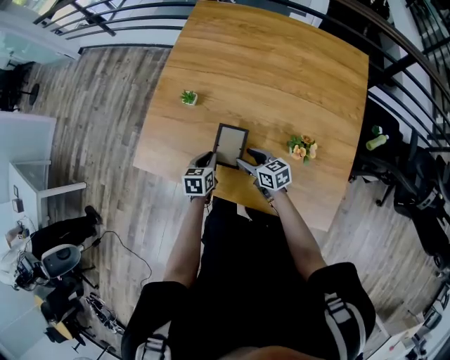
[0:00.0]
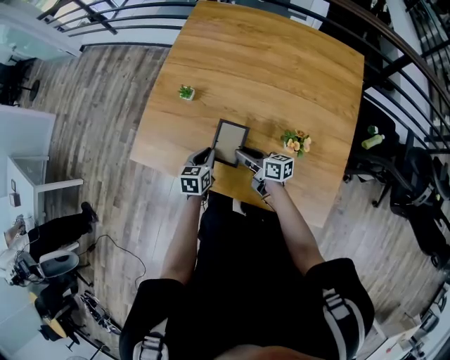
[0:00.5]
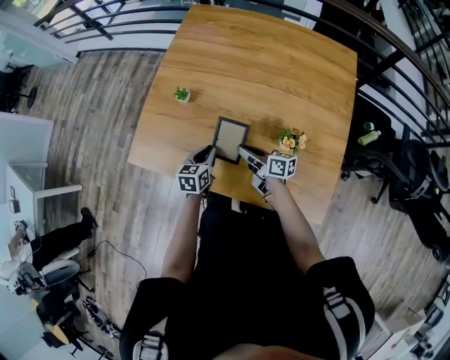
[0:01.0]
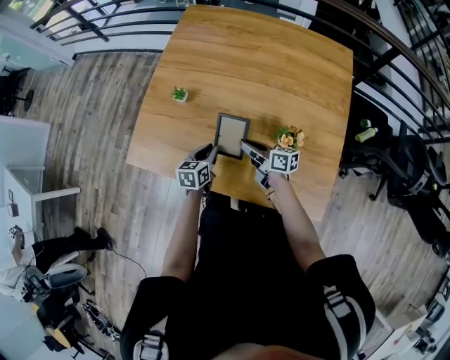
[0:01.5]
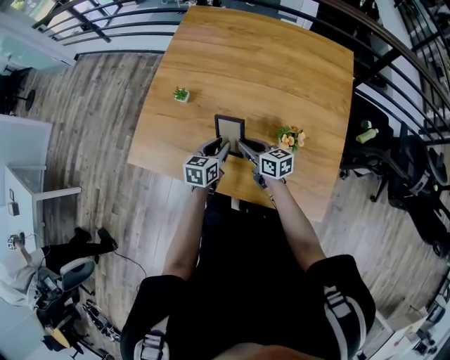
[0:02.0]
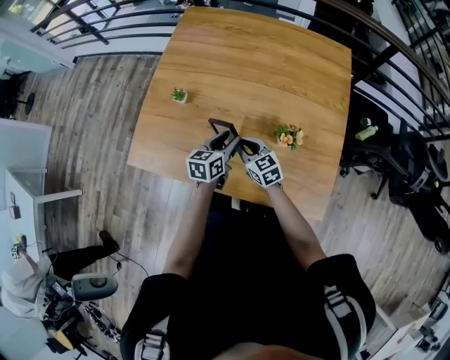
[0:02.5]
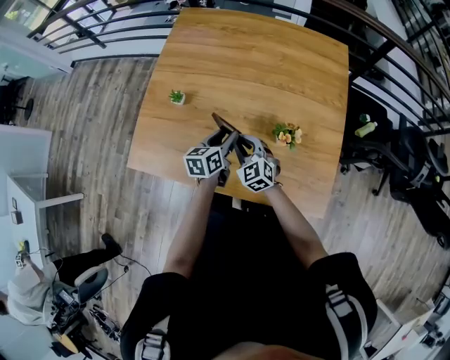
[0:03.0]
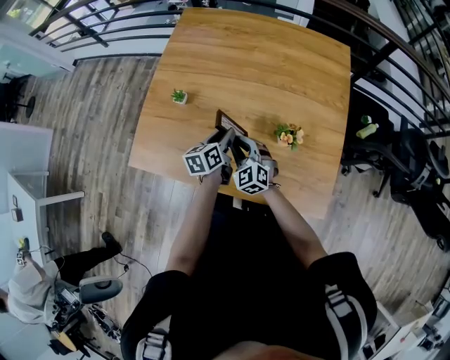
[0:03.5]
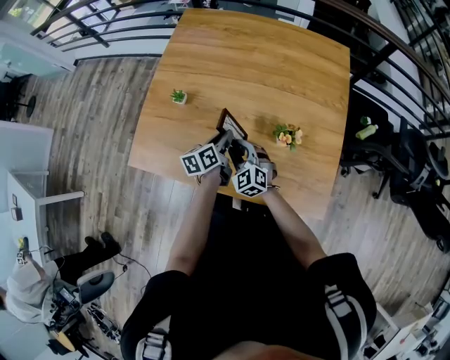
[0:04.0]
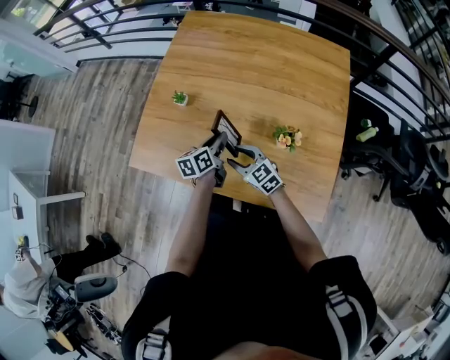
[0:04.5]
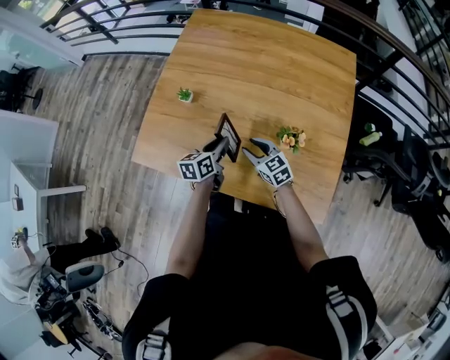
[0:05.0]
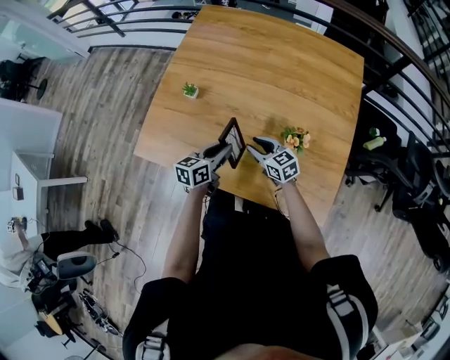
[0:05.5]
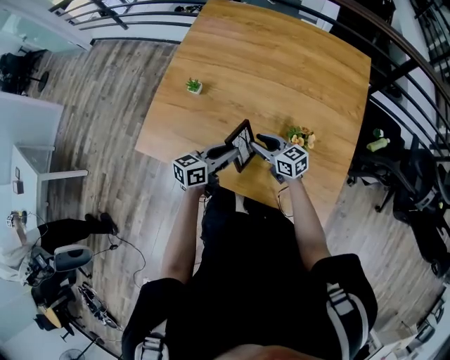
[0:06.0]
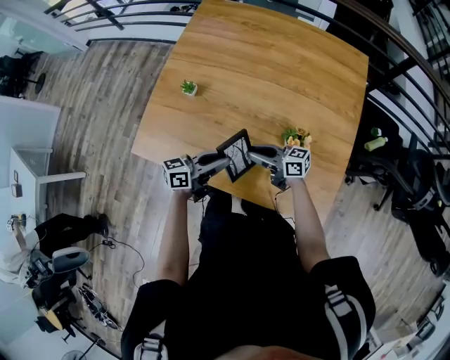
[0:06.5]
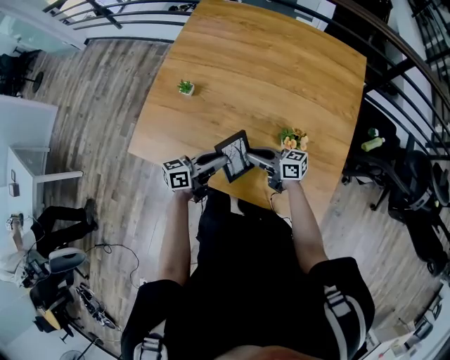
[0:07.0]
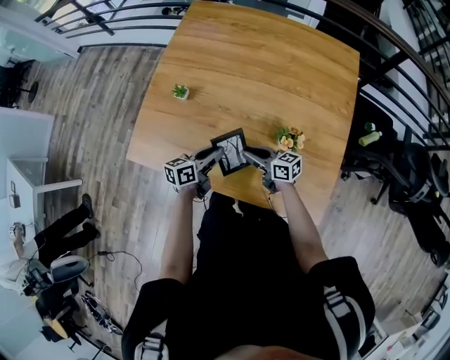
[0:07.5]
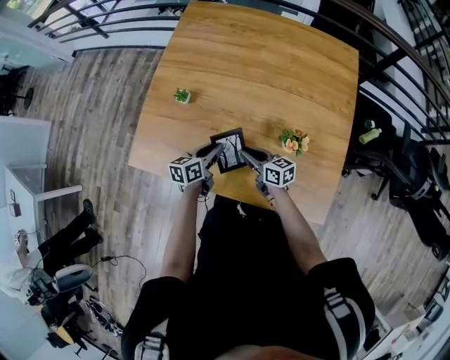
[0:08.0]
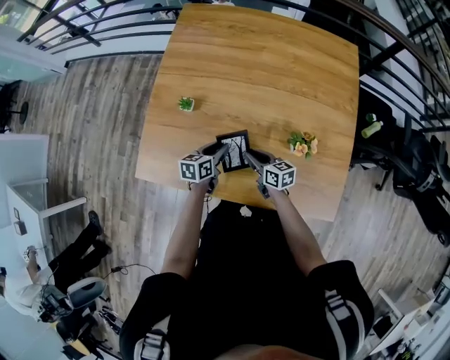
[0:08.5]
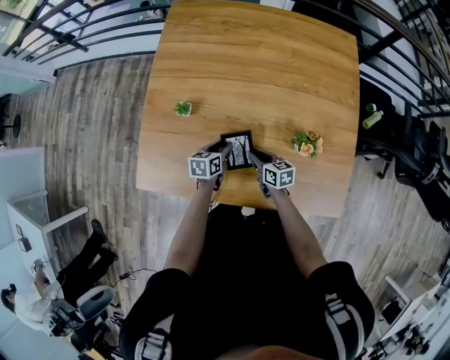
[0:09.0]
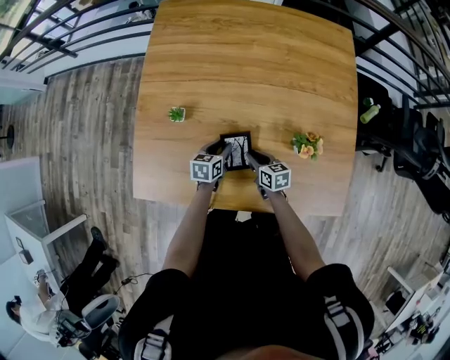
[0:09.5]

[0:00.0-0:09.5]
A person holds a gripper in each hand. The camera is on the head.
0:00.0 to 0:02.0: The left gripper goes approximately 10 cm to the right and upward. The right gripper is displaced upward by approximately 5 cm, and closes.
0:02.0 to 0:04.0: The left gripper changes its angle by approximately 30 degrees, while the right gripper twists roughly 60 degrees counterclockwise, seen from behind.
0:04.0 to 0:05.5: The left gripper is displaced backward by some 5 cm. Meanwhile the right gripper changes place by some 5 cm, and turns by about 40 degrees.
0:05.5 to 0:07.5: The right gripper swivels about 30 degrees.
0:07.5 to 0:09.5: The two grippers go roughly 15 cm downward and forward. The right gripper changes its angle by roughly 40 degrees; the left gripper turns by roughly 30 degrees.

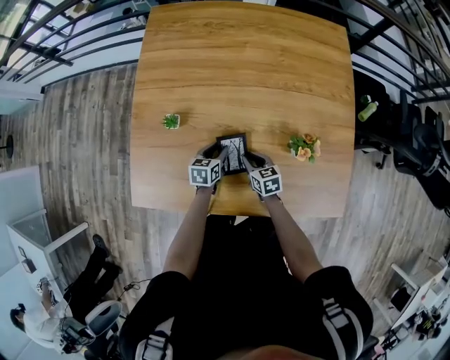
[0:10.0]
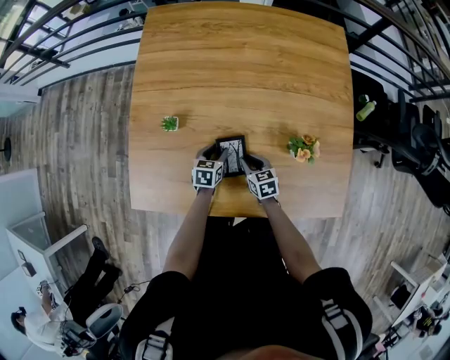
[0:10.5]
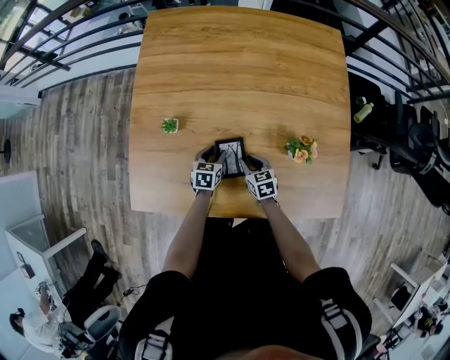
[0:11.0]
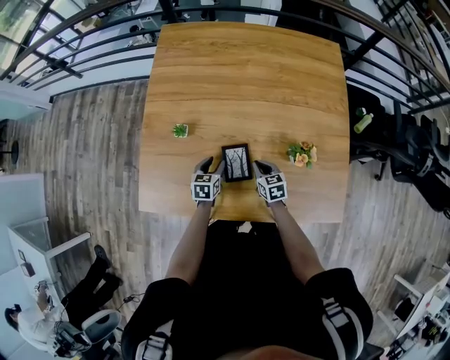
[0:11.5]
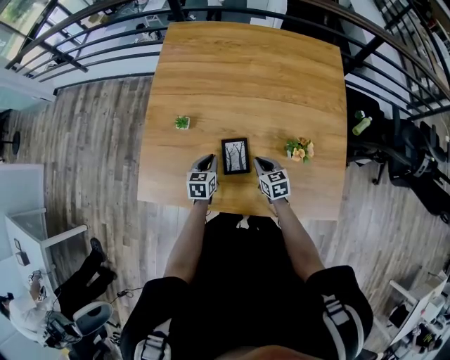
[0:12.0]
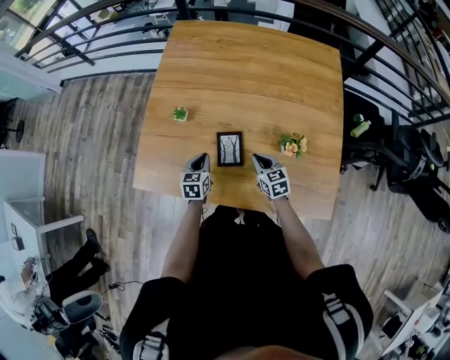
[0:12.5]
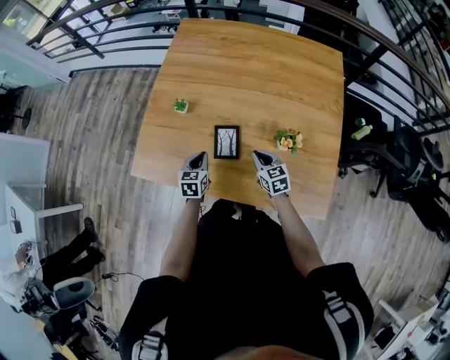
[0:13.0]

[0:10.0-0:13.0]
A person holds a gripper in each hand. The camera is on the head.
0:10.0 to 0:11.5: The grippers stay close to where they were, moving slightly.
0:11.5 to 0:13.0: The left gripper shifts roughly 10 cm backward and upward, and closes. Meanwhile the right gripper moves upward, approximately 10 cm.

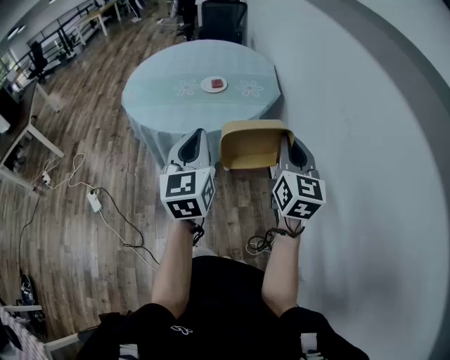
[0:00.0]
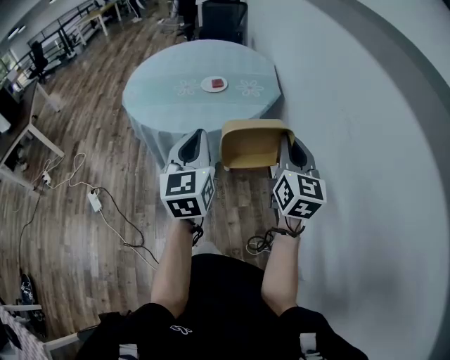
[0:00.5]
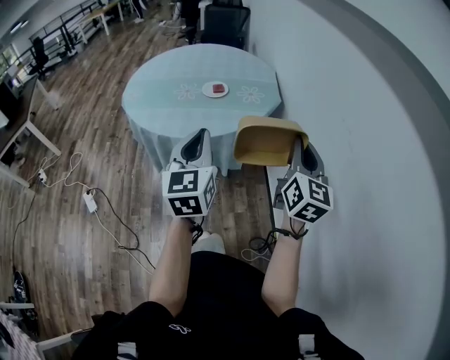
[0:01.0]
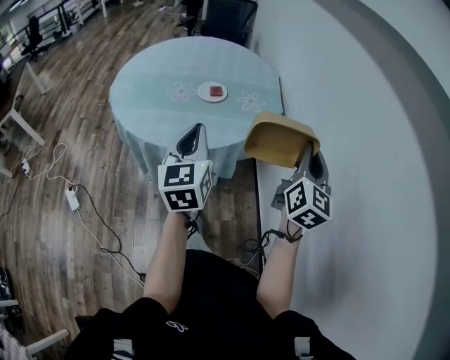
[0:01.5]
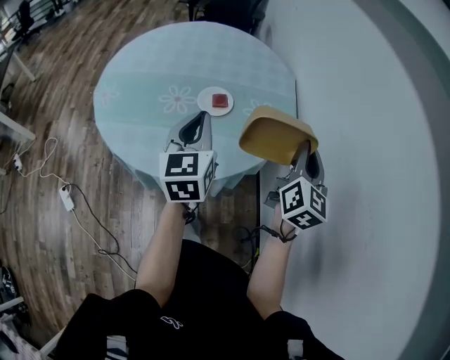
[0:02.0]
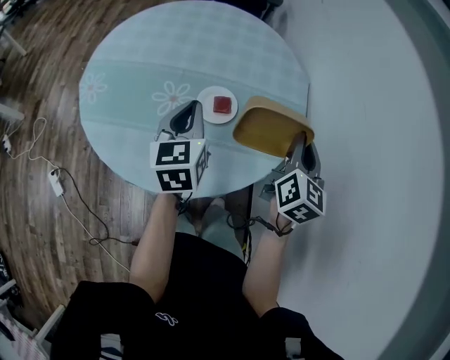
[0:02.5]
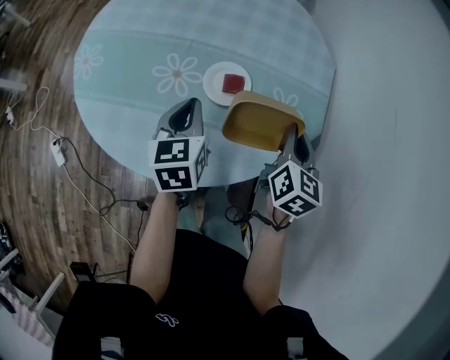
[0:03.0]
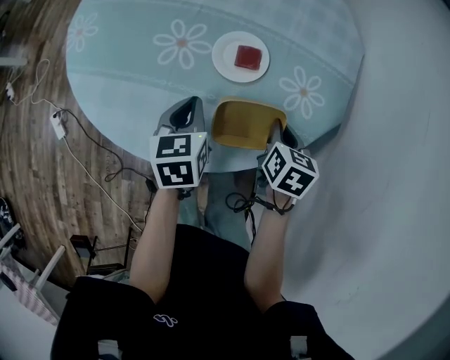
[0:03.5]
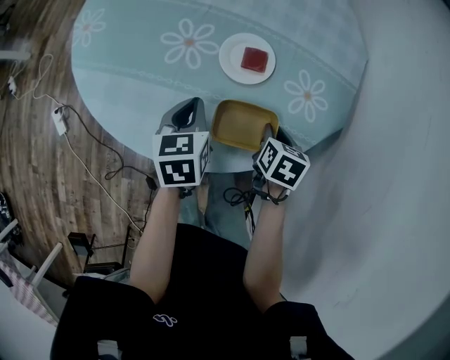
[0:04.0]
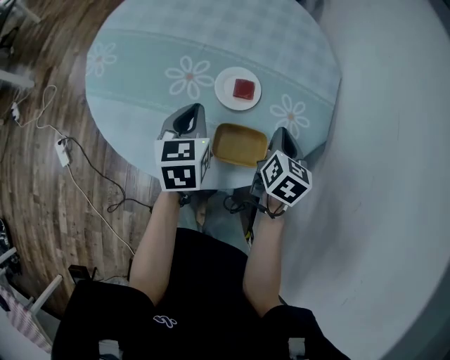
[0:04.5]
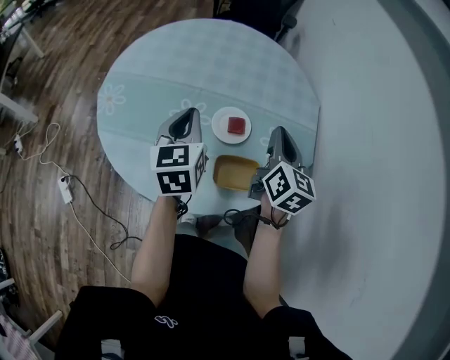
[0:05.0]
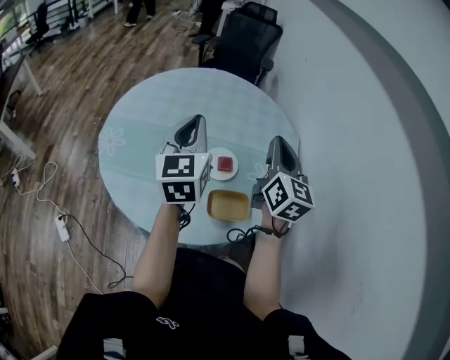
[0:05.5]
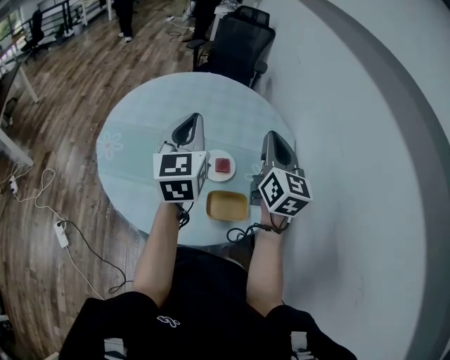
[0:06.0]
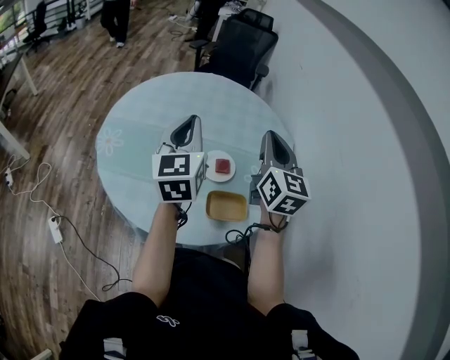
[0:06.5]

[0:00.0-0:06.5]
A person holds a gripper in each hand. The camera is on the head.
0:00.0 to 0:02.0: The two grippers go approximately 40 cm forward.
0:02.0 to 0:04.5: The two grippers go roughly 25 cm downward, forward and to the left. The left gripper swivels approximately 20 degrees, while the right gripper angles its fingers downward, by some 30 degrees.
0:04.5 to 0:06.5: Both grippers travel together upward, roughly 25 cm. The left gripper angles its fingers upward, by about 30 degrees; the right gripper tilts its fingers approximately 30 degrees upward.

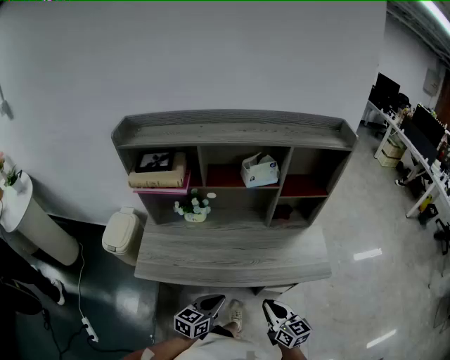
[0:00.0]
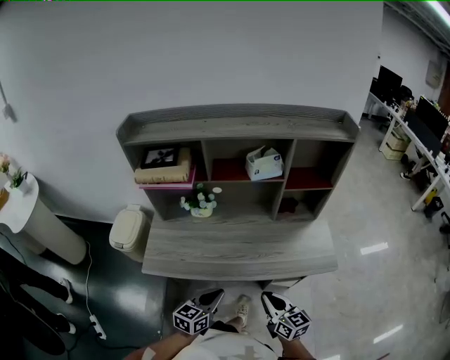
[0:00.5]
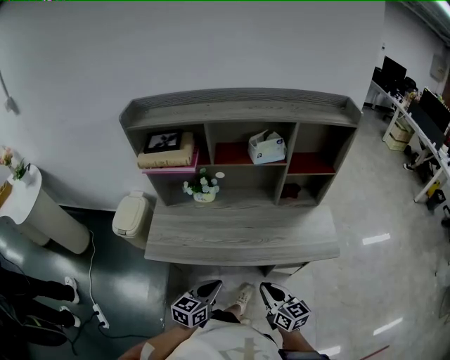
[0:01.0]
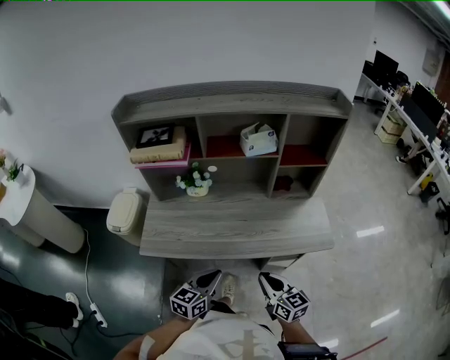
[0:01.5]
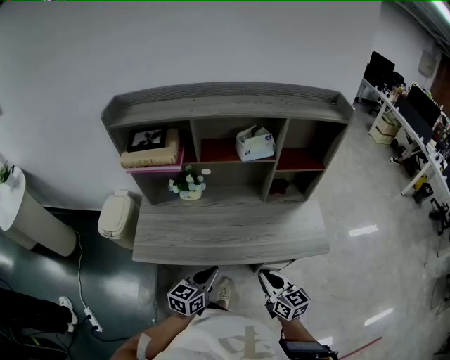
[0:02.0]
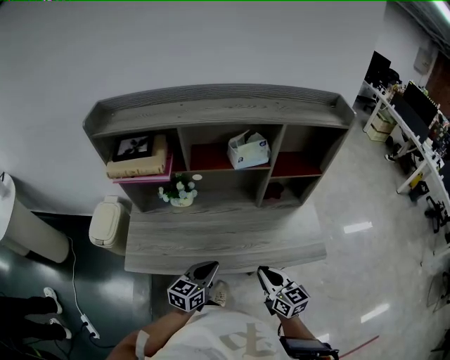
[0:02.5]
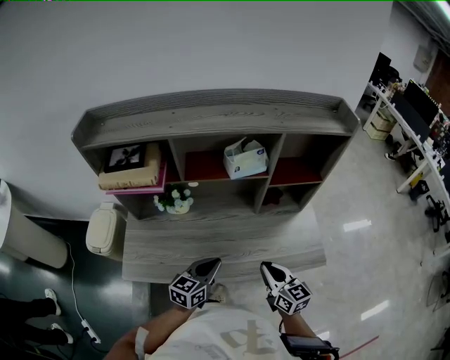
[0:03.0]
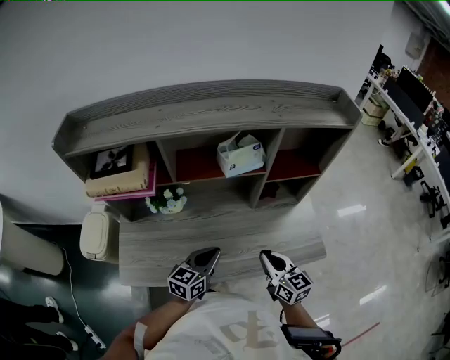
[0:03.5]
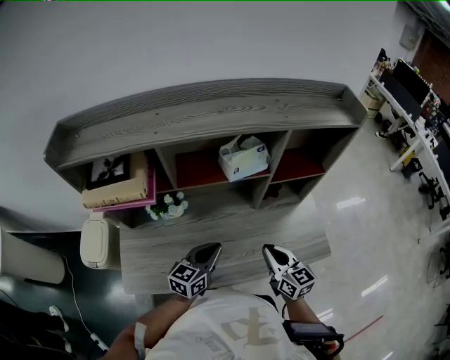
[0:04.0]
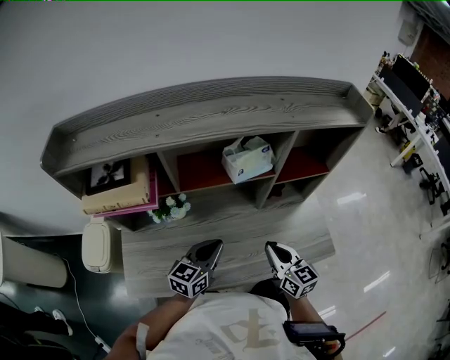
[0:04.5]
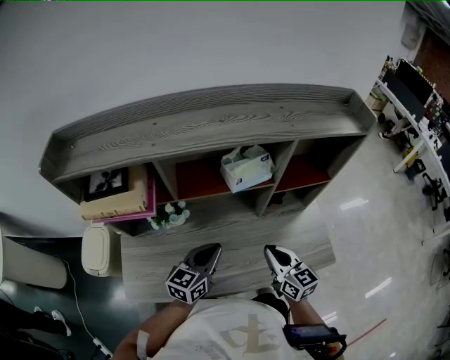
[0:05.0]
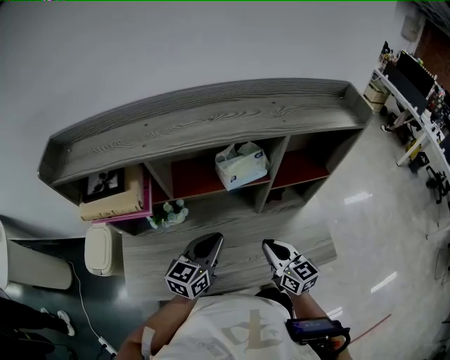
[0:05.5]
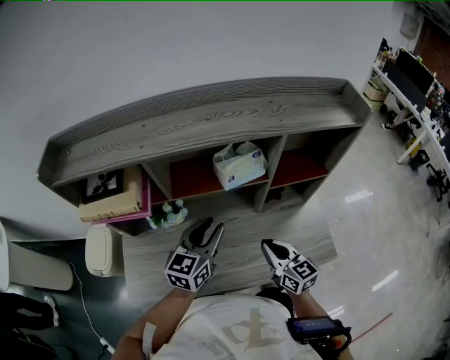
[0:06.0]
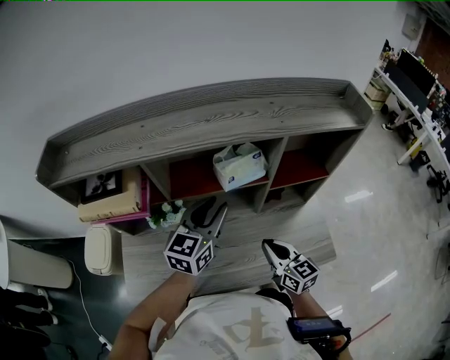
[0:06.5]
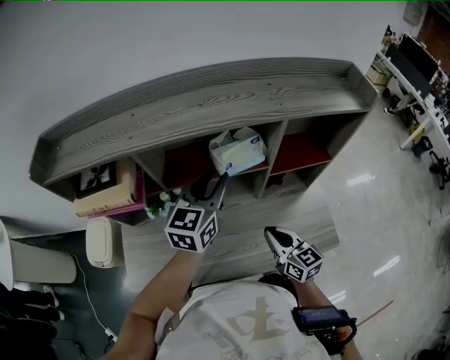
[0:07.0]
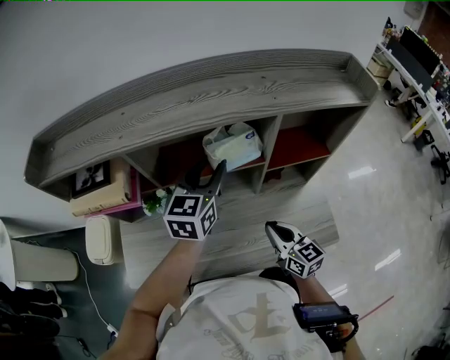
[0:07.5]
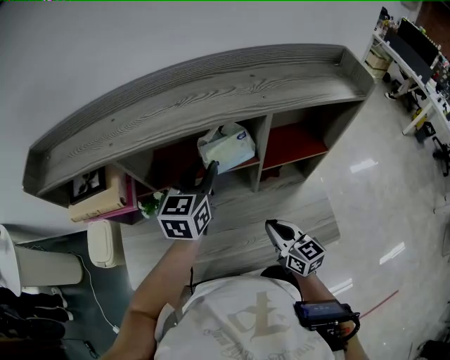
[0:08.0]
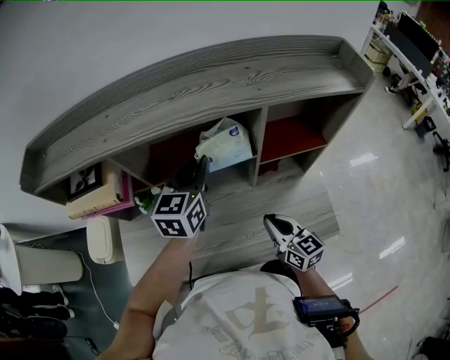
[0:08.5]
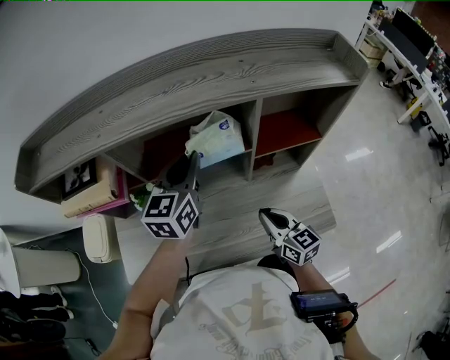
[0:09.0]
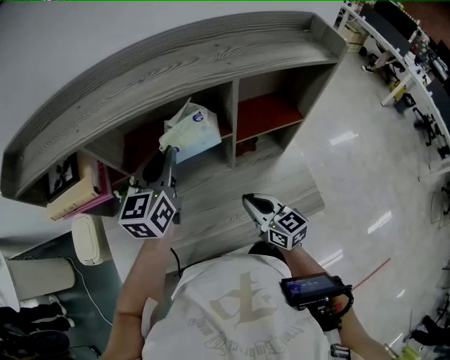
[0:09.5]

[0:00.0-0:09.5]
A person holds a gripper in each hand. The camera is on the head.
0:00.0 to 0:02.0: The grippers stay close to where they were, moving slightly.
0:02.0 to 0:04.0: Both grippers move forward, some 20 cm.
0:04.0 to 0:05.5: The left gripper heads upward and forward, covering approximately 10 cm.
0:05.5 to 0:07.5: The left gripper heads forward and upward, covering about 15 cm, and opens its fingers.
0:07.5 to 0:09.5: The left gripper closes.
